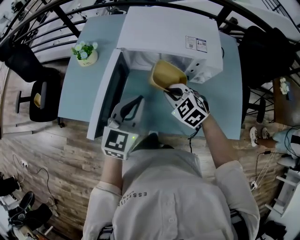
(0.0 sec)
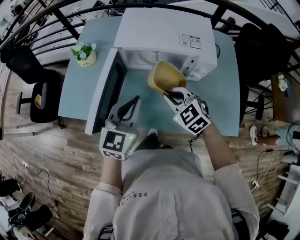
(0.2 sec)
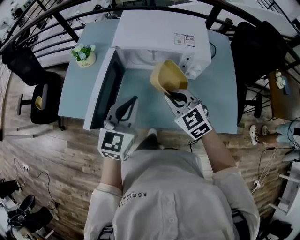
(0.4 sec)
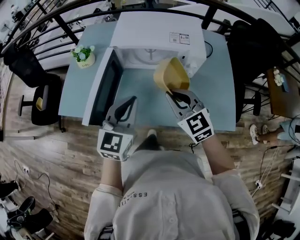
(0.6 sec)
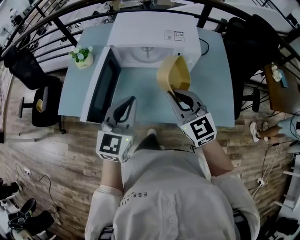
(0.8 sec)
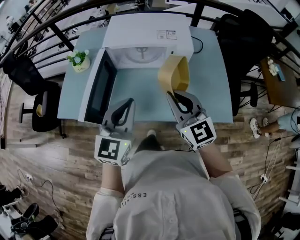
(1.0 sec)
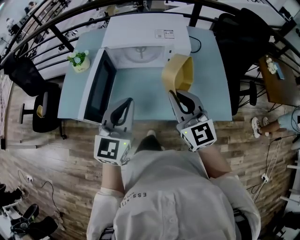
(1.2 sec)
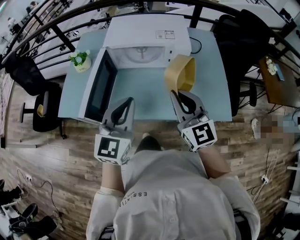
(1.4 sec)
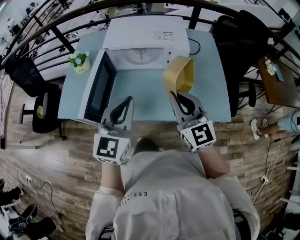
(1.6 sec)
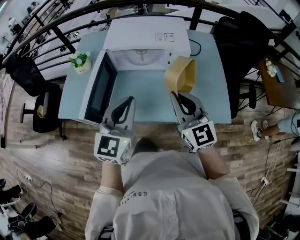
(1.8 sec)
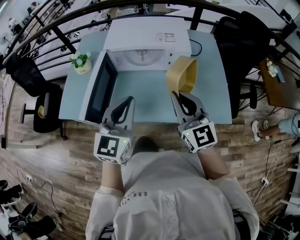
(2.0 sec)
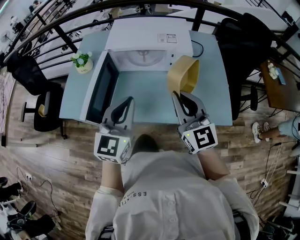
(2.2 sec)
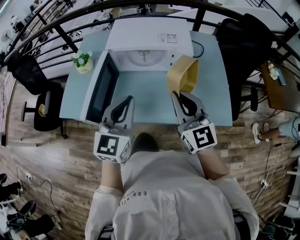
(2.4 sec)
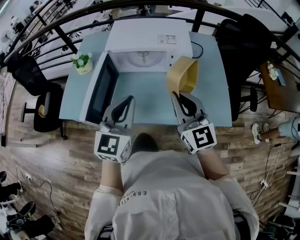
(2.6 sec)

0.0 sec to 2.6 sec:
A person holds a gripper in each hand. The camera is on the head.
0.0 sec to 1.2 sec: The right gripper goes roughly 25 cm upward, backward and to the right, and points its fingers about 40 degrees further upward, while the left gripper moves backward and upward, about 15 cm.
1.2 sec to 2.6 sec: There are only small adjustments of the grippers.

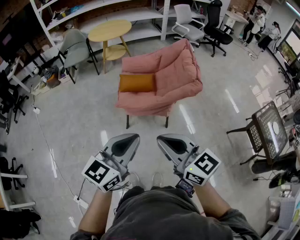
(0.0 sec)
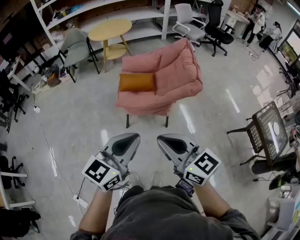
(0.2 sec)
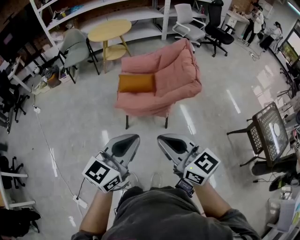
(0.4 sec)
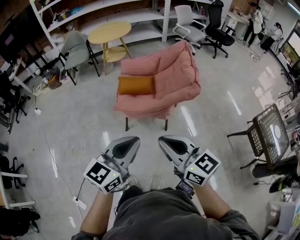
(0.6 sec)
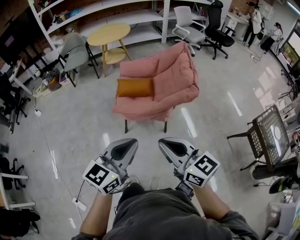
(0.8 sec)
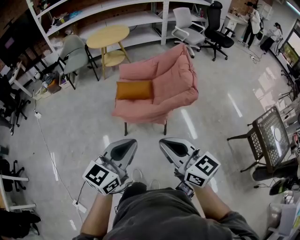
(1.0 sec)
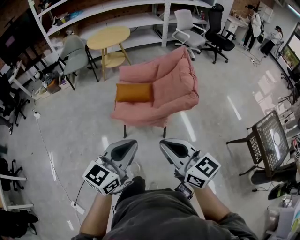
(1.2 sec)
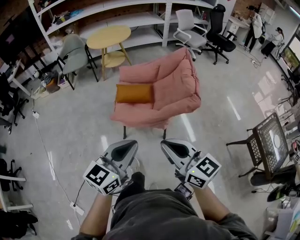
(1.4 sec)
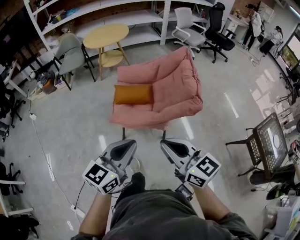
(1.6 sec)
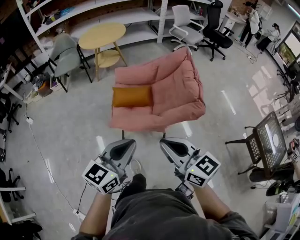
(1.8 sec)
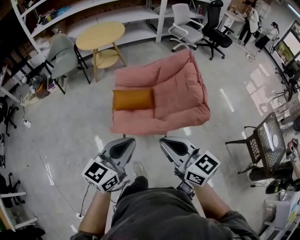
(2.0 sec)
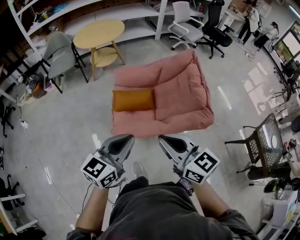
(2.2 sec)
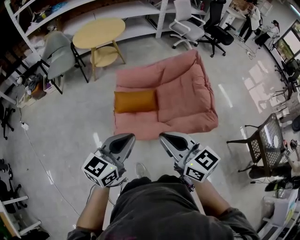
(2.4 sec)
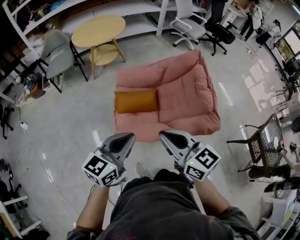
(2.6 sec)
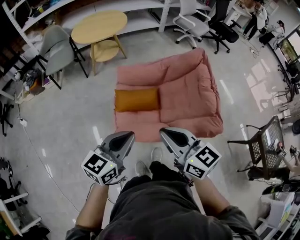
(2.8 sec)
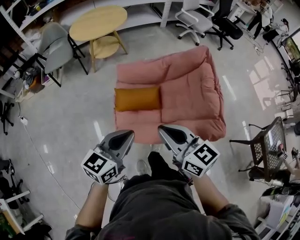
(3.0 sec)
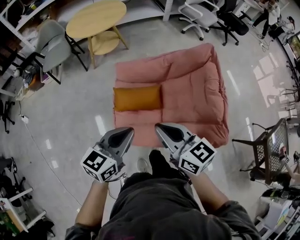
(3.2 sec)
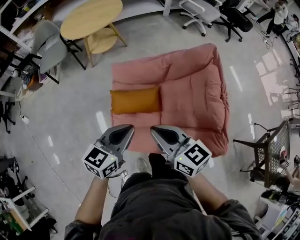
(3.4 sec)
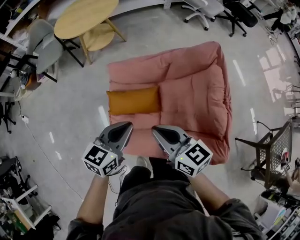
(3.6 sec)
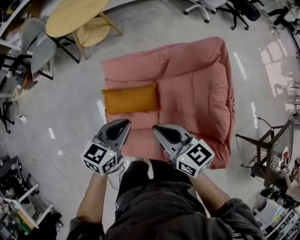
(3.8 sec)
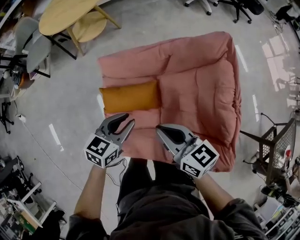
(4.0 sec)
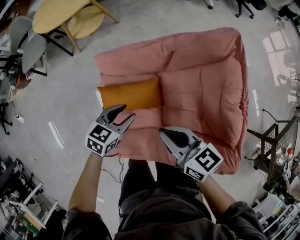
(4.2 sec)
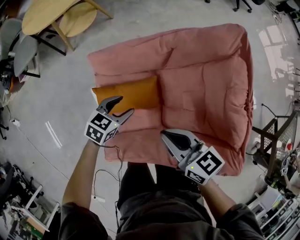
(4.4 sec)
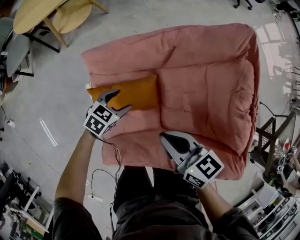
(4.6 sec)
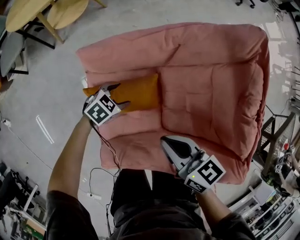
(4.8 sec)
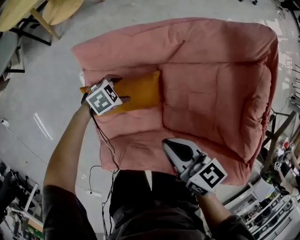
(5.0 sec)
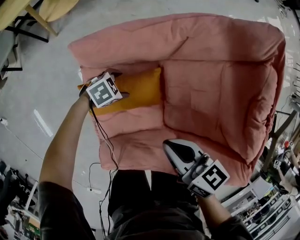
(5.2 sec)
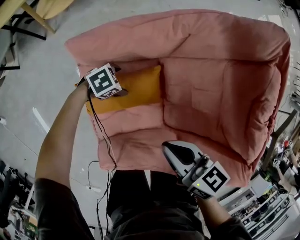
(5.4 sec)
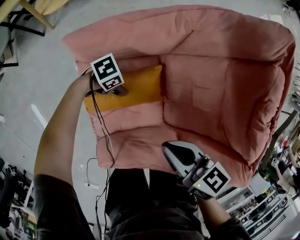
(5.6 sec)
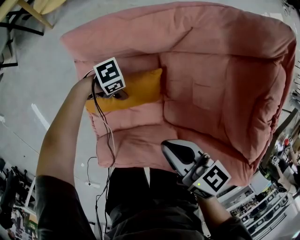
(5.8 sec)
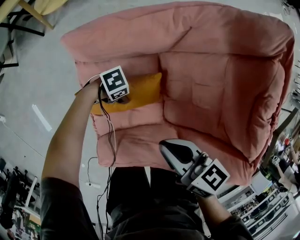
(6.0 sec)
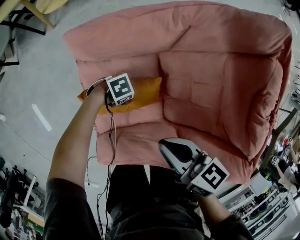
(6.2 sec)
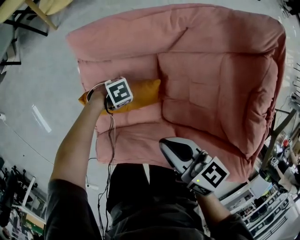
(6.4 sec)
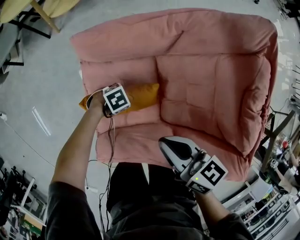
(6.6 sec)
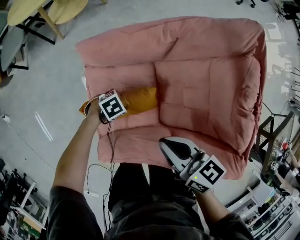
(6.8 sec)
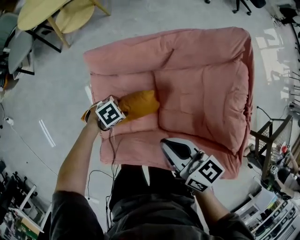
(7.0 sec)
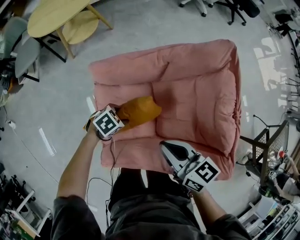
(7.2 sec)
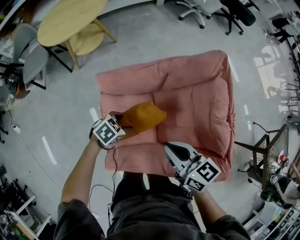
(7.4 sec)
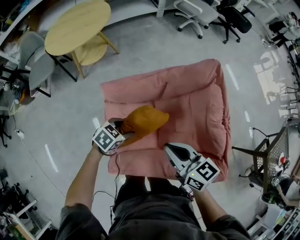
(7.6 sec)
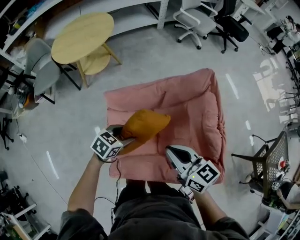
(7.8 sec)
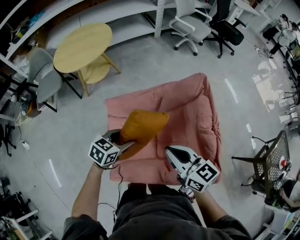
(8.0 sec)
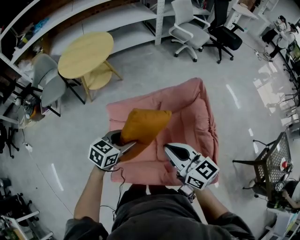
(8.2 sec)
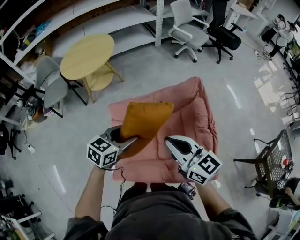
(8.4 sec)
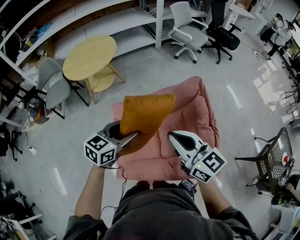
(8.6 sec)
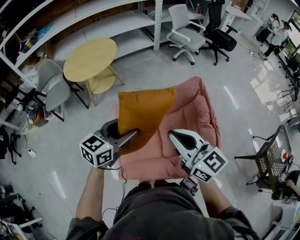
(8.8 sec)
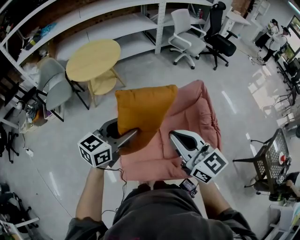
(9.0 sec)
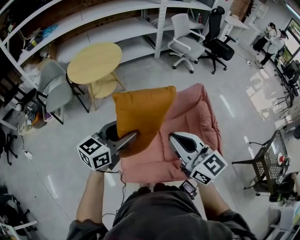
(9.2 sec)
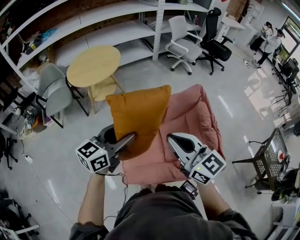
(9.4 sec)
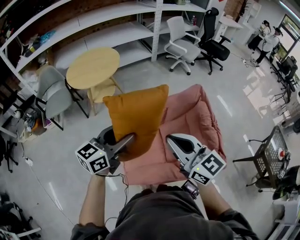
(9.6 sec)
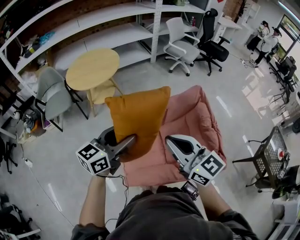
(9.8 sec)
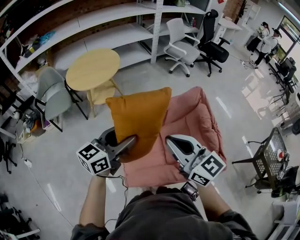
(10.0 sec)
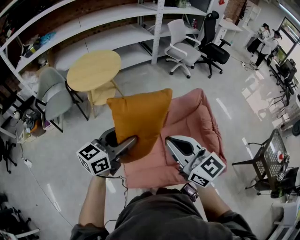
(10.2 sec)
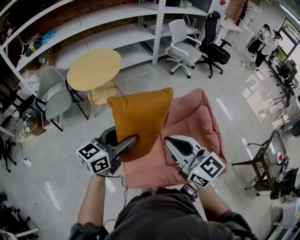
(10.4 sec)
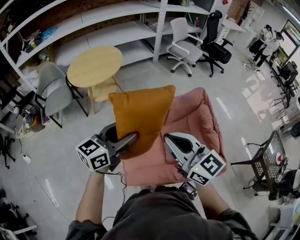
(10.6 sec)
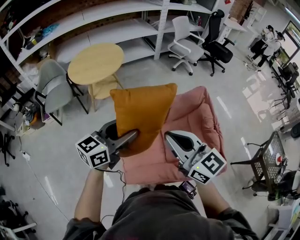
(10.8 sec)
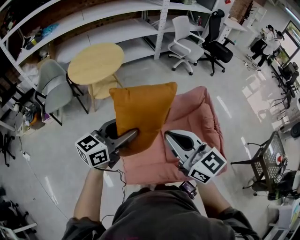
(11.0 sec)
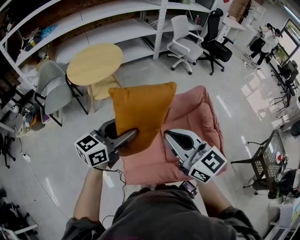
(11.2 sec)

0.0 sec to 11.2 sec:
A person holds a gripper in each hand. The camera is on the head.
0.0 sec to 1.6 sec: The right gripper goes roughly 15 cm forward and to the right. Meanwhile the left gripper travels forward by about 15 cm.
1.6 sec to 3.2 sec: Both grippers travel together forward, roughly 35 cm.
3.2 sec to 4.8 sec: The right gripper shifts about 25 cm downward, and rotates approximately 30 degrees. Meanwhile the left gripper moves downward, about 40 cm, tilts its fingers some 40 degrees downward, and opens.
4.8 sec to 6.4 sec: The left gripper travels downward by some 10 cm, and rotates roughly 30 degrees.
6.4 sec to 8.0 sec: The left gripper is displaced upward by some 40 cm, and rotates approximately 60 degrees, while the right gripper moves upward, some 25 cm, and turns by about 30 degrees.
8.0 sec to 9.6 sec: The left gripper heads upward, covering approximately 25 cm, and tilts its fingers roughly 40 degrees upward; the right gripper shifts roughly 20 cm upward and to the left.
9.6 sec to 11.2 sec: The grippers make only small movements.

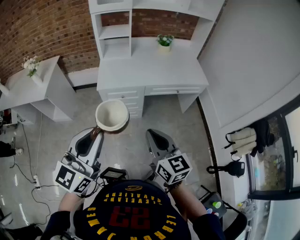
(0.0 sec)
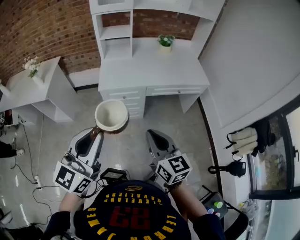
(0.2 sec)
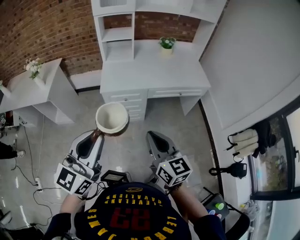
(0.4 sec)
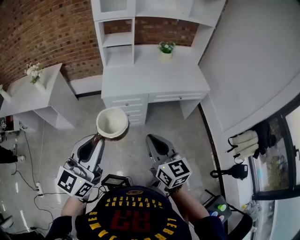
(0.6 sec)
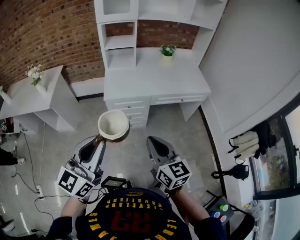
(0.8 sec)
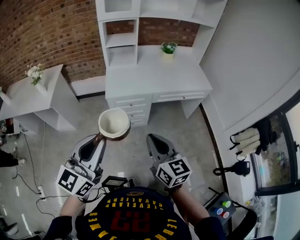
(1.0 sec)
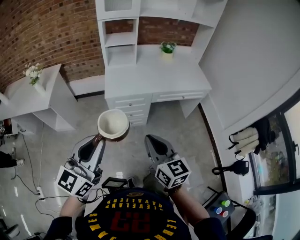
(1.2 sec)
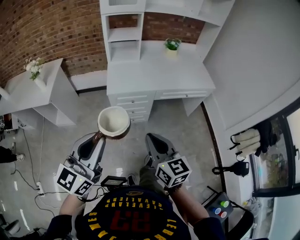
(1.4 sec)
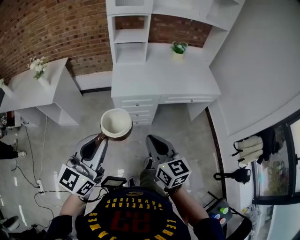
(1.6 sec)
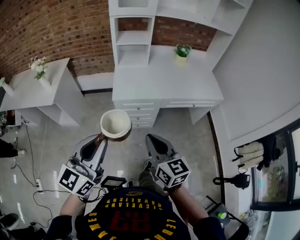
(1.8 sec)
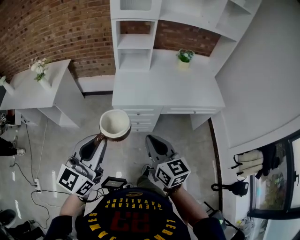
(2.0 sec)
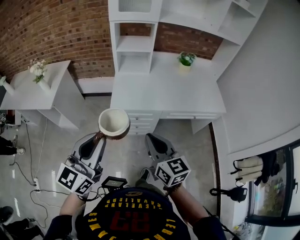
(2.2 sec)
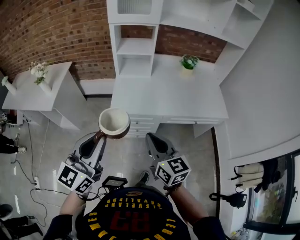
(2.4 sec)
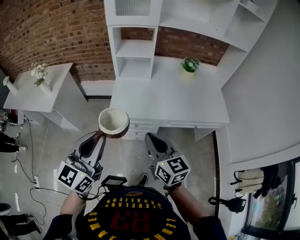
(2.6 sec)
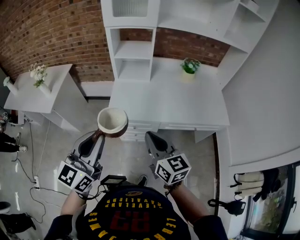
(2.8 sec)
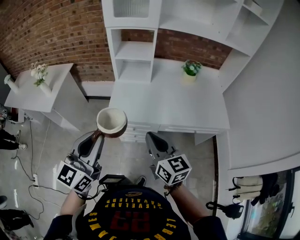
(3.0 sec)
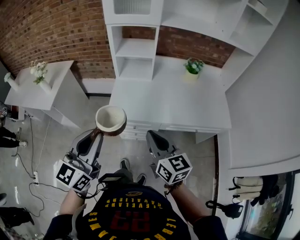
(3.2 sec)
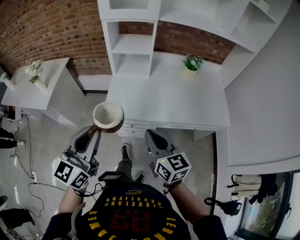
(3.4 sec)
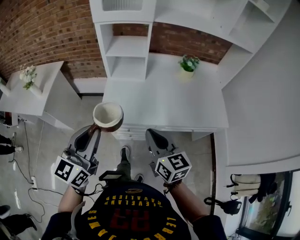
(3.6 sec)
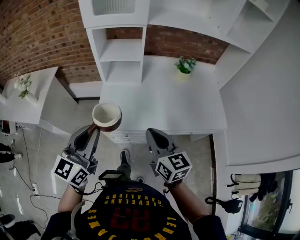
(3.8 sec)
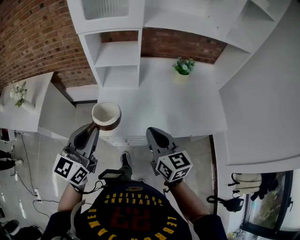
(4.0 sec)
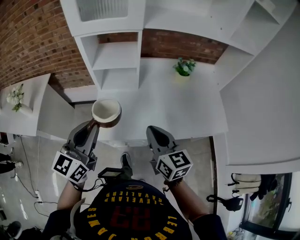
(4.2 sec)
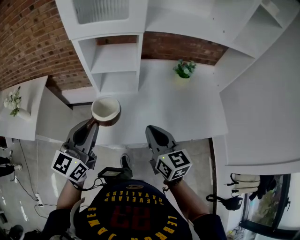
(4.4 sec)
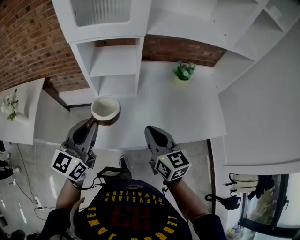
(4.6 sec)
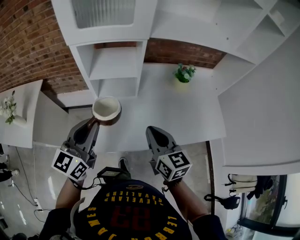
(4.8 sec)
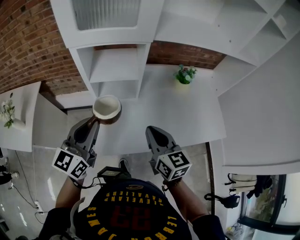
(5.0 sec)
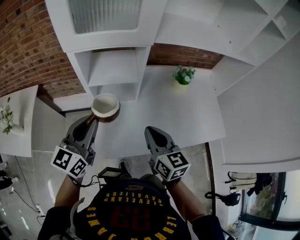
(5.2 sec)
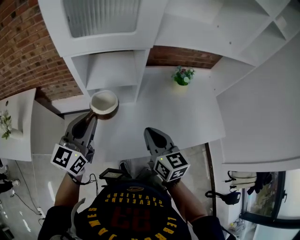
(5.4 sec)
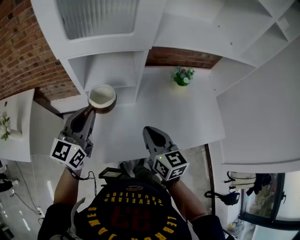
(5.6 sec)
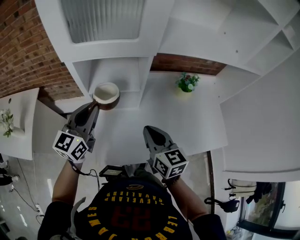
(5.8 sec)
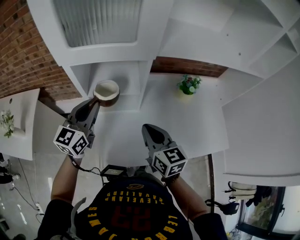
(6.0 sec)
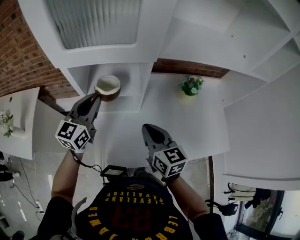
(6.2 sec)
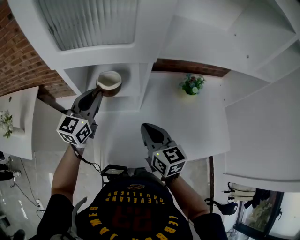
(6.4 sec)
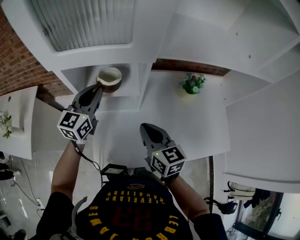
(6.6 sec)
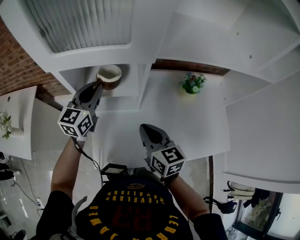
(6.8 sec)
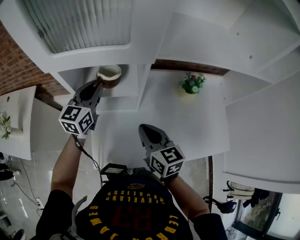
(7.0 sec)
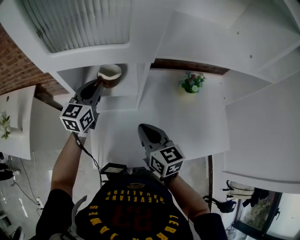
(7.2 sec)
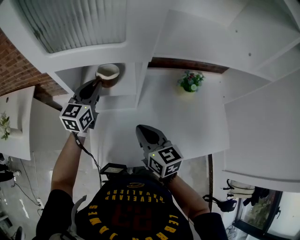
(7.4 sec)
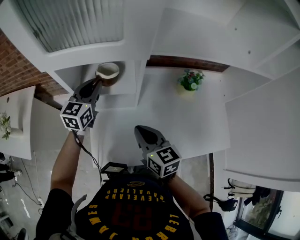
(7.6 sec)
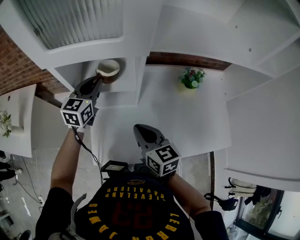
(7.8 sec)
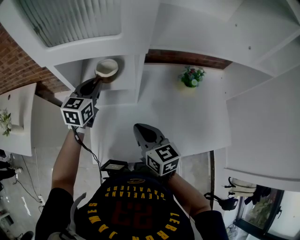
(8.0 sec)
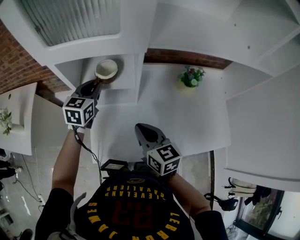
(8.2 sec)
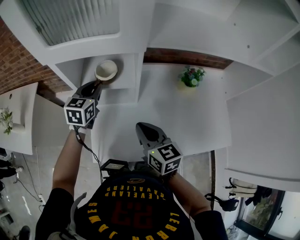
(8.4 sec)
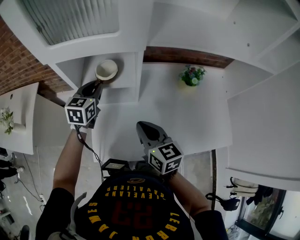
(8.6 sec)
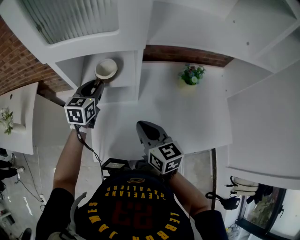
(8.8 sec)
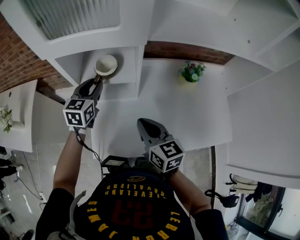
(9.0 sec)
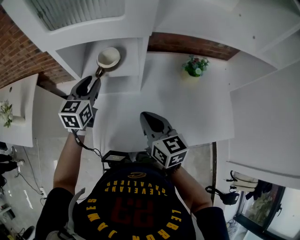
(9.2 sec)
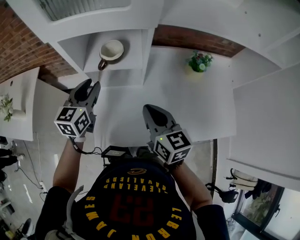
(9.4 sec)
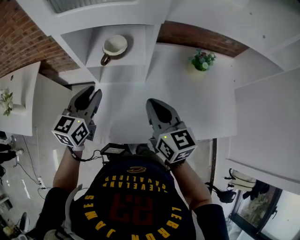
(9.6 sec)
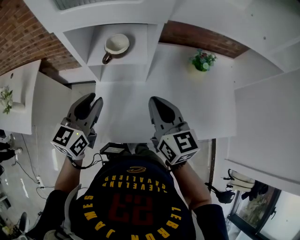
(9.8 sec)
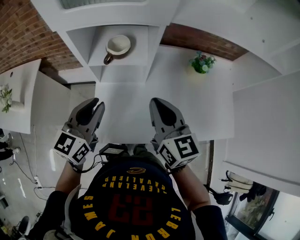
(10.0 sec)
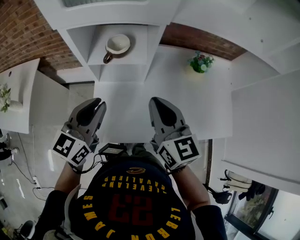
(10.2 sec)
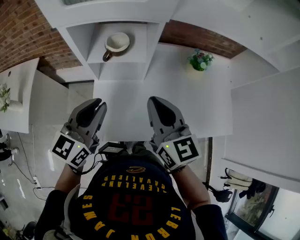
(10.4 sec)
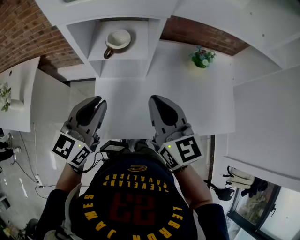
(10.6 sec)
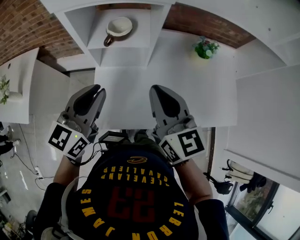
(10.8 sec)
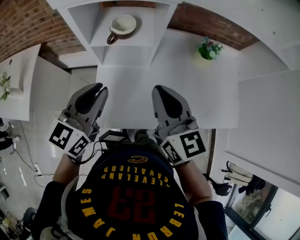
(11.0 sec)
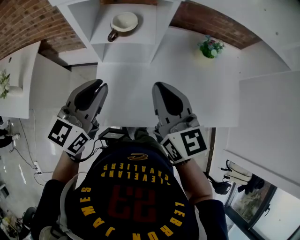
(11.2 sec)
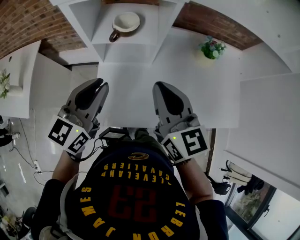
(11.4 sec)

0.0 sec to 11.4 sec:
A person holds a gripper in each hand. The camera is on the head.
0.0 sec to 1.4 sec: The grippers both shift to the left by about 10 cm.
1.4 sec to 2.8 sec: The two grippers go about 25 cm forward.
2.8 sec to 4.2 sec: Both grippers move forward, roughly 20 cm.
4.2 sec to 5.6 sec: The grippers both shift forward by some 20 cm.
5.6 sec to 7.2 sec: The left gripper travels forward by about 20 cm. Meanwhile the right gripper moves forward, some 10 cm.
7.2 sec to 8.6 sec: The left gripper moves approximately 5 cm.
8.6 sec to 10.0 sec: The right gripper moves upward, about 10 cm. Meanwhile the left gripper moves backward, about 20 cm.
10.0 sec to 11.4 sec: There are only small adjustments of the grippers.
